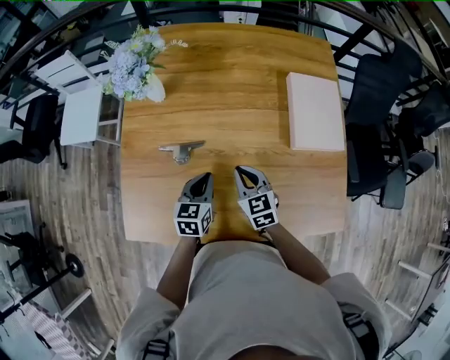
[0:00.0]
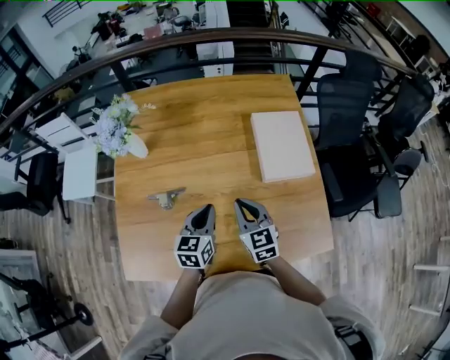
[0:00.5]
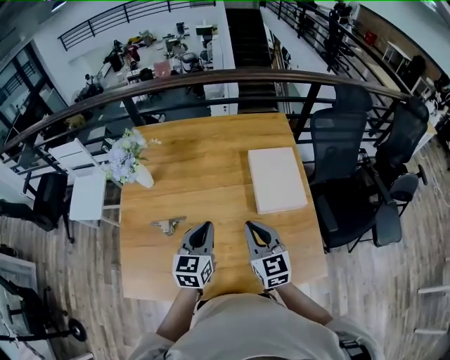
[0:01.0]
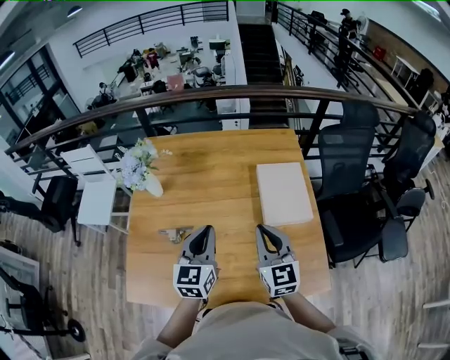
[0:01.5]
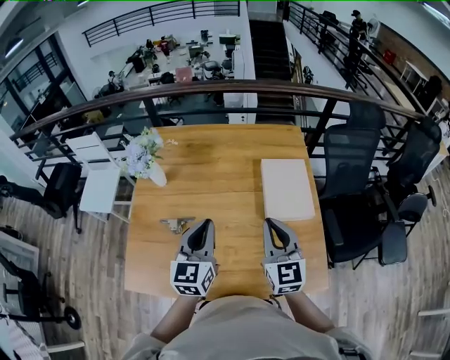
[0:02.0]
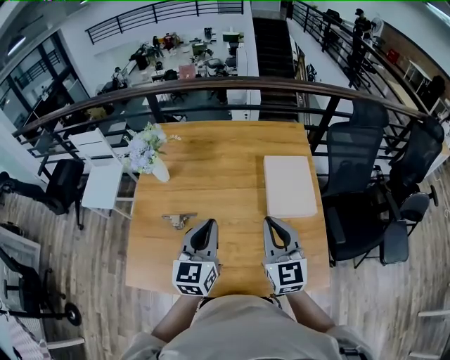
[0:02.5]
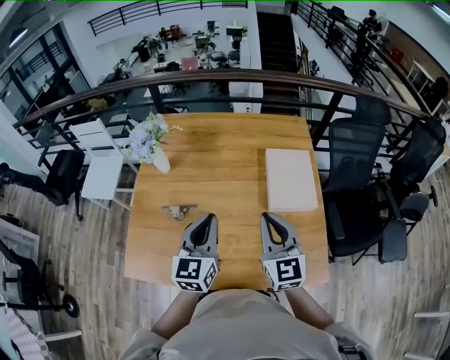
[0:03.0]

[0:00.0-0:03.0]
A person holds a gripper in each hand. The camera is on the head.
0:00.0 to 0:01.5: Both grippers travel together upward and to the right, approximately 25 cm. The left gripper changes its angle by about 30 degrees, while the right gripper swivels approximately 30 degrees.
0:01.5 to 0:03.0: There are only small adjustments of the grippers.

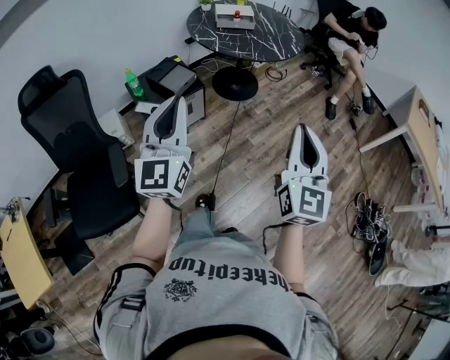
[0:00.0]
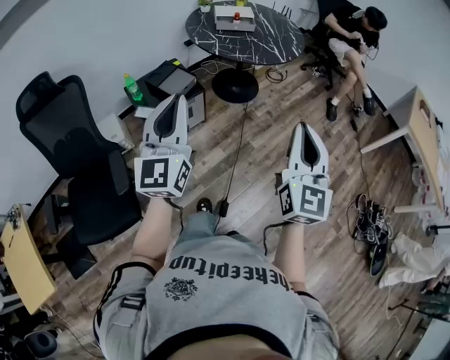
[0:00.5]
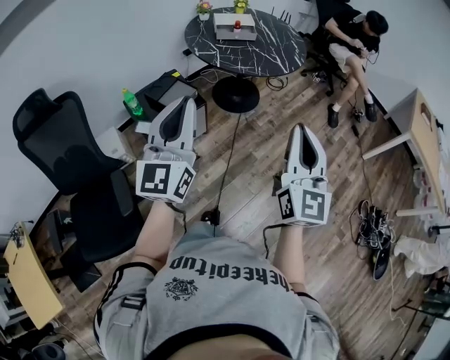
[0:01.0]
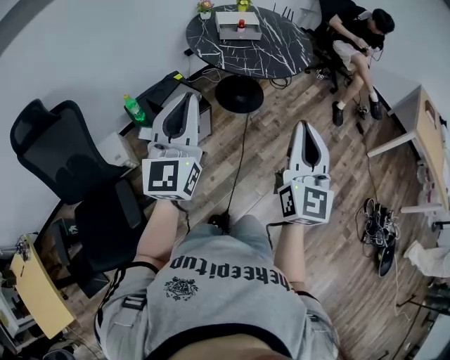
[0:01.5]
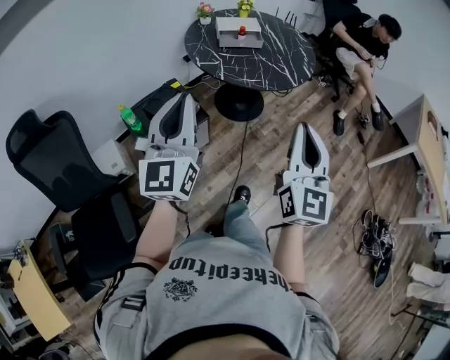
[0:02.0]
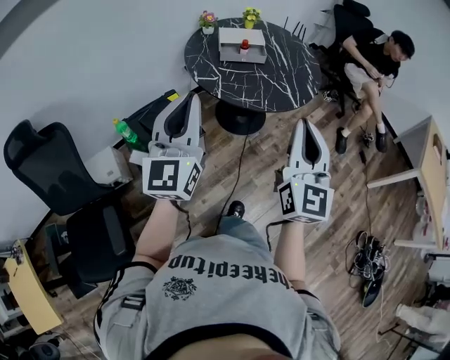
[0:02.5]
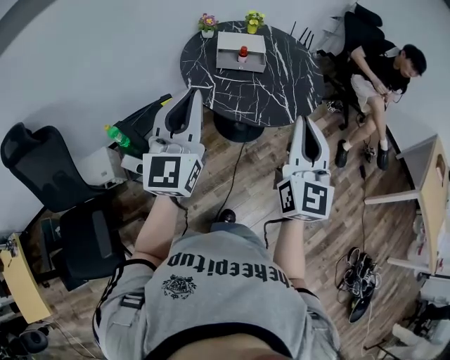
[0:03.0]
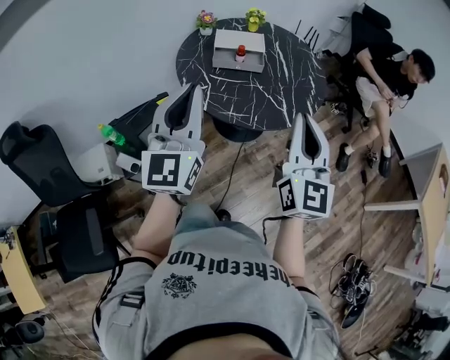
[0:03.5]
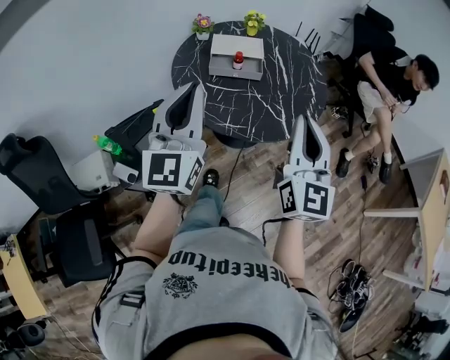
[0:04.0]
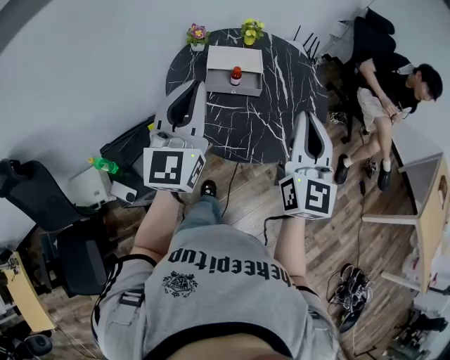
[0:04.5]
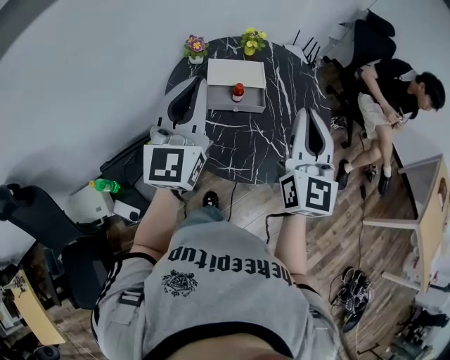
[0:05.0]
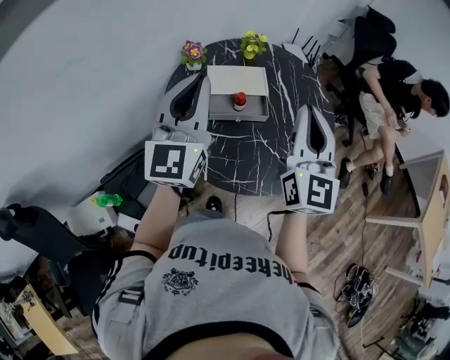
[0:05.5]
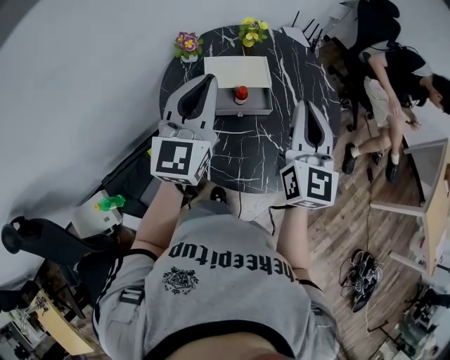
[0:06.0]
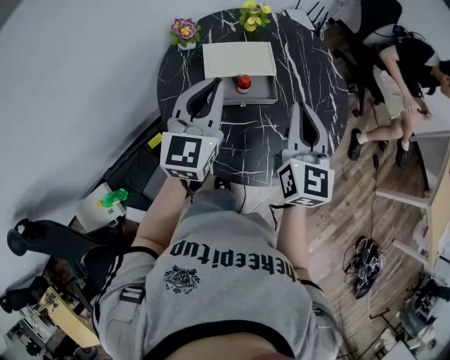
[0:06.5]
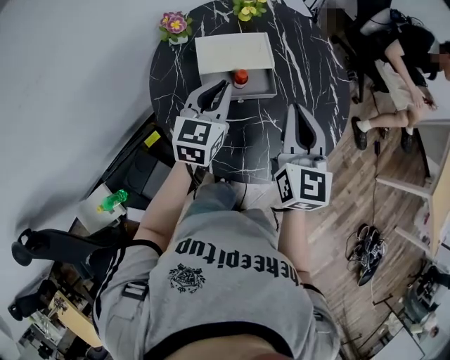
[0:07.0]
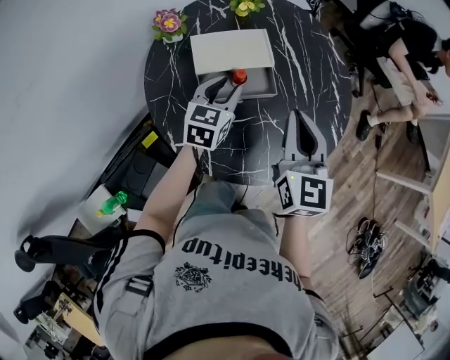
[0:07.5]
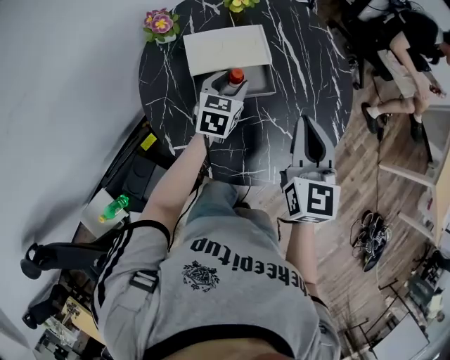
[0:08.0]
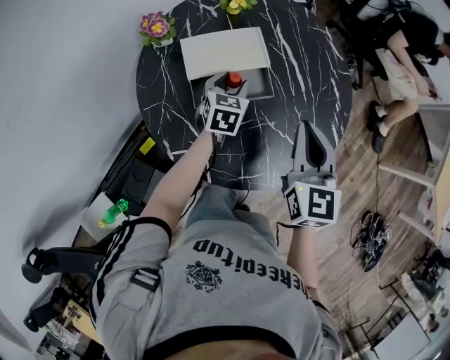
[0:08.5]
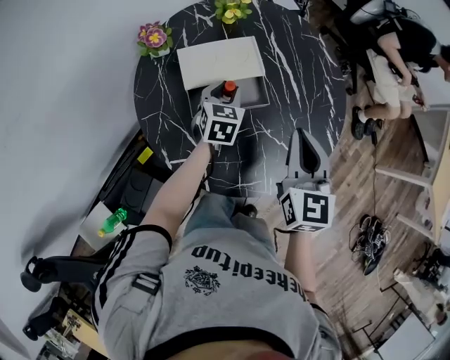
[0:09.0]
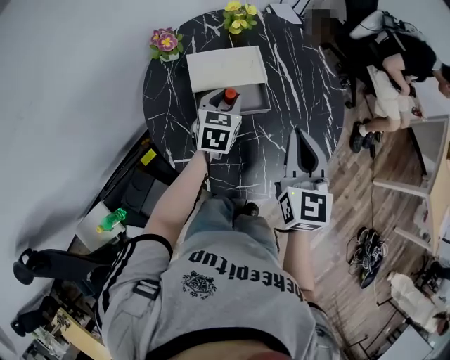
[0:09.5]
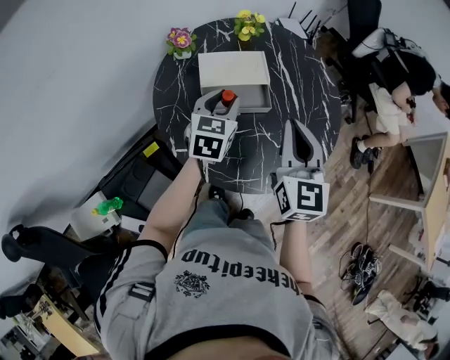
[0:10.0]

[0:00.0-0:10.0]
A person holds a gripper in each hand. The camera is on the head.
0:00.0 to 0:02.0: Both grippers move forward, approximately 25 cm.
0:02.0 to 0:04.0: The right gripper goes some 35 cm forward, while the left gripper is displaced forward and to the right by roughly 35 cm.
0:04.0 to 0:06.0: Both grippers move forward, some 30 cm.
0:06.0 to 0:08.0: The right gripper goes some 10 cm downward, and turns by some 20 degrees, while the left gripper goes about 30 cm downward and forward, tips its fingers downward by some 40 degrees, and opens up.
0:08.0 to 0:10.0: The right gripper travels upward by about 5 cm. The left gripper travels upward and backward by about 15 cm.

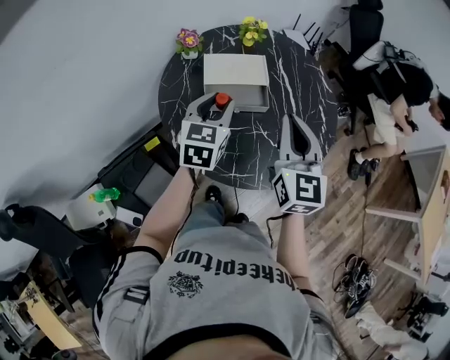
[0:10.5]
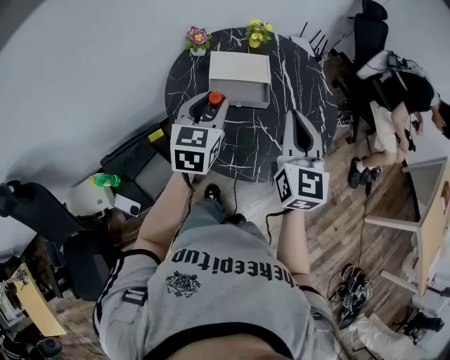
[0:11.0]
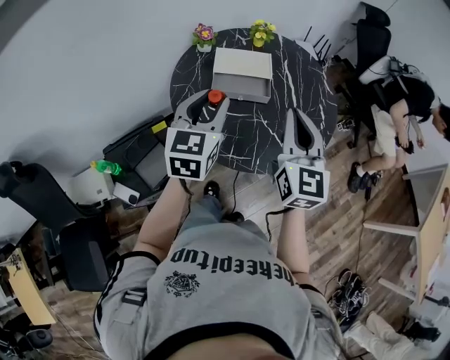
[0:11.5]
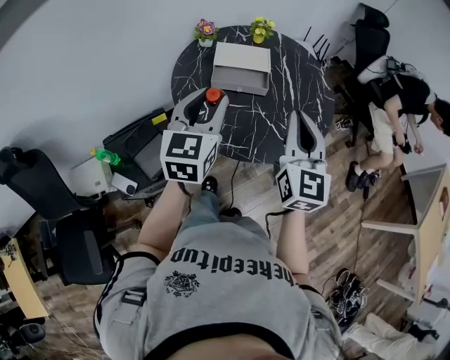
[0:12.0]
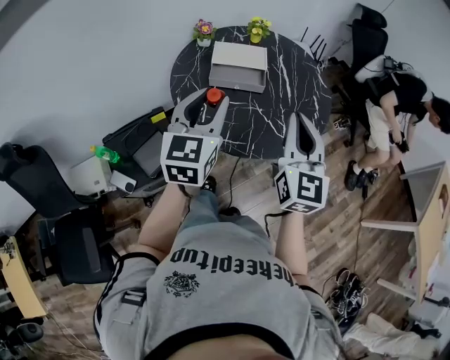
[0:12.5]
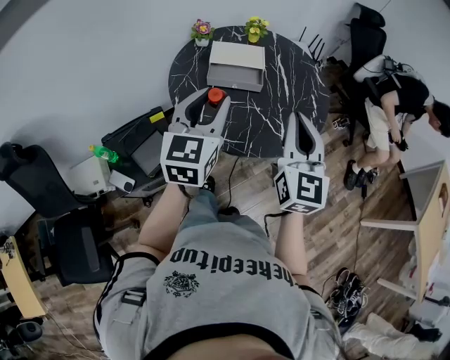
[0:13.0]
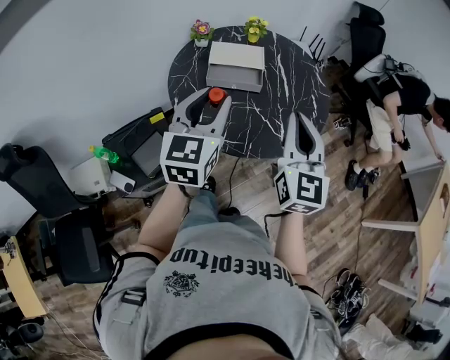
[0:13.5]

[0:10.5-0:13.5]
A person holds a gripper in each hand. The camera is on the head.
0:10.5 to 0:12.0: The left gripper is displaced backward and upward by roughly 20 cm. Meanwhile the right gripper shifts about 15 cm backward.
0:12.0 to 0:13.5: The left gripper moves some 5 cm.

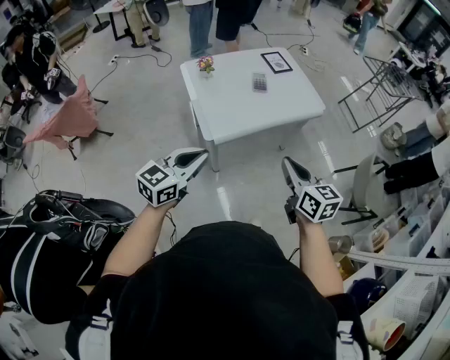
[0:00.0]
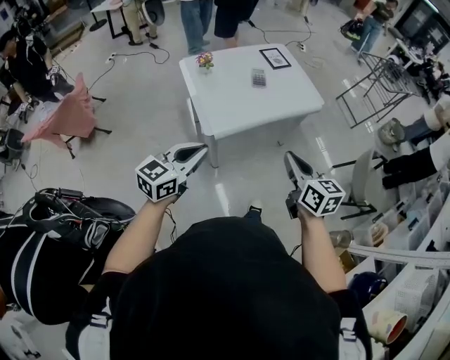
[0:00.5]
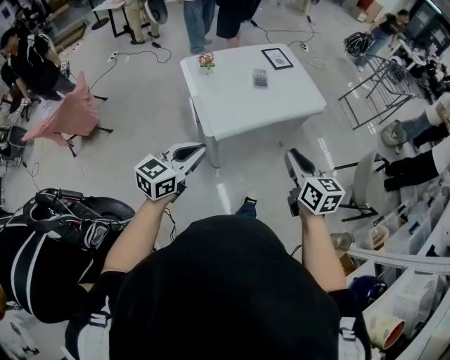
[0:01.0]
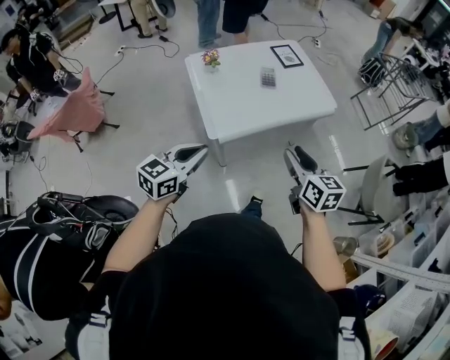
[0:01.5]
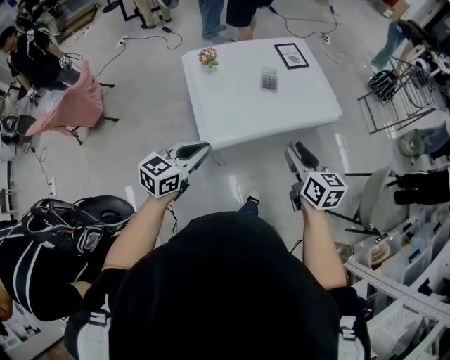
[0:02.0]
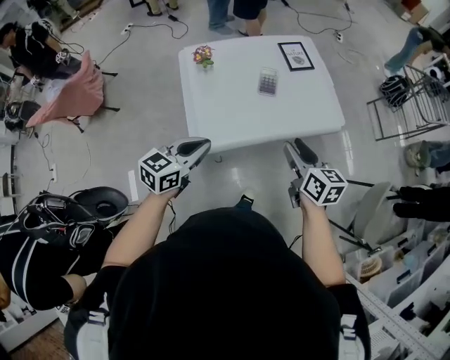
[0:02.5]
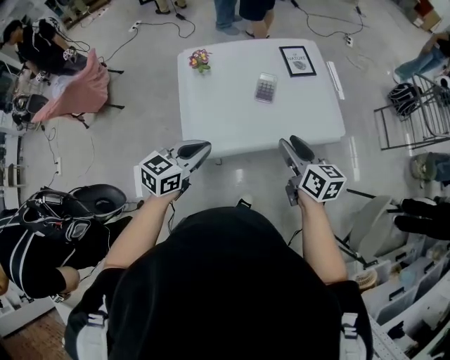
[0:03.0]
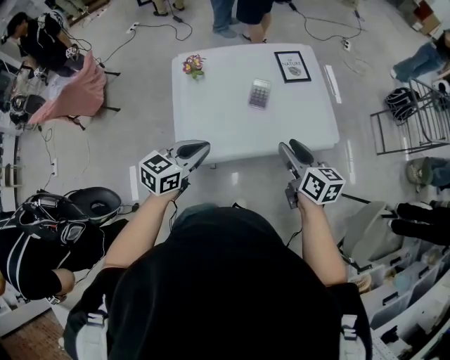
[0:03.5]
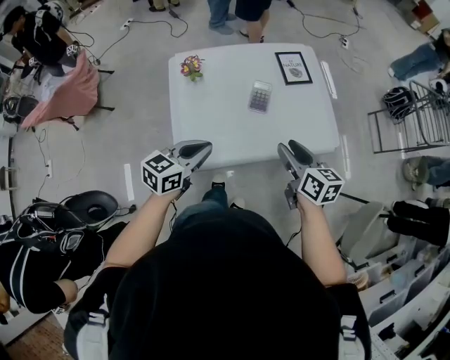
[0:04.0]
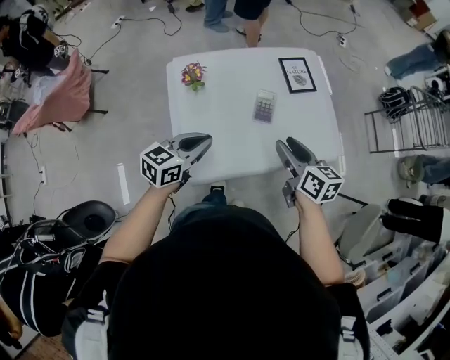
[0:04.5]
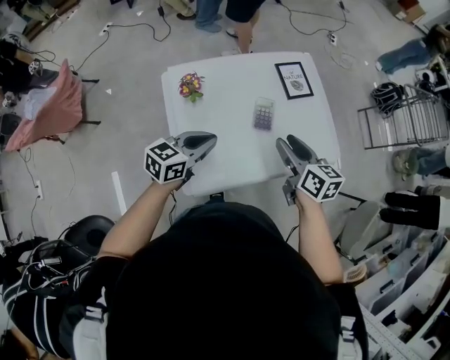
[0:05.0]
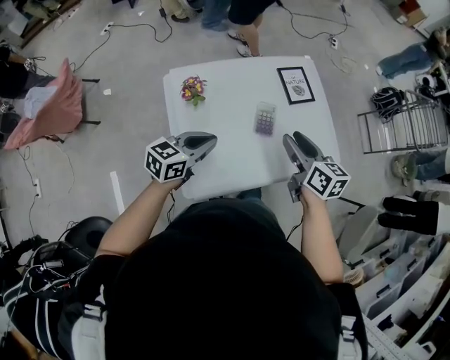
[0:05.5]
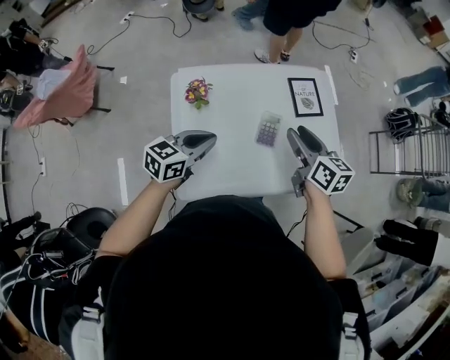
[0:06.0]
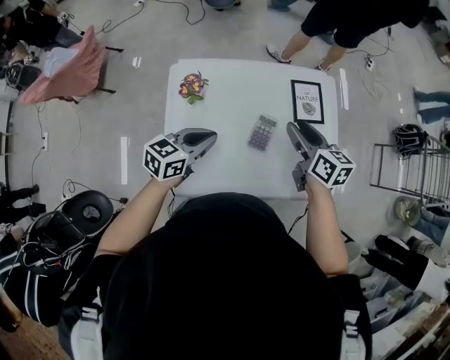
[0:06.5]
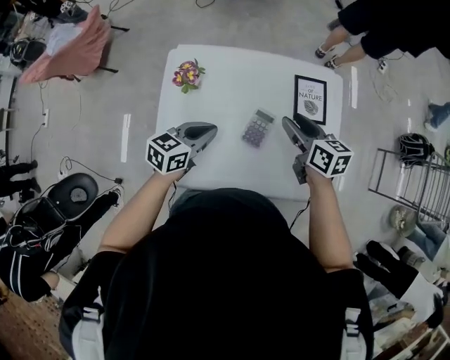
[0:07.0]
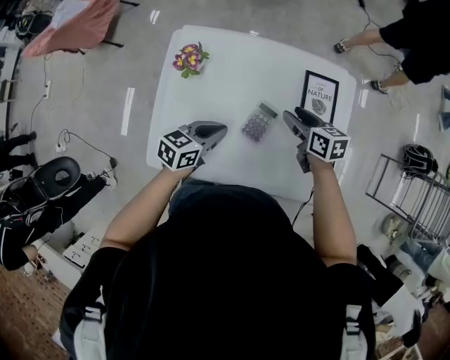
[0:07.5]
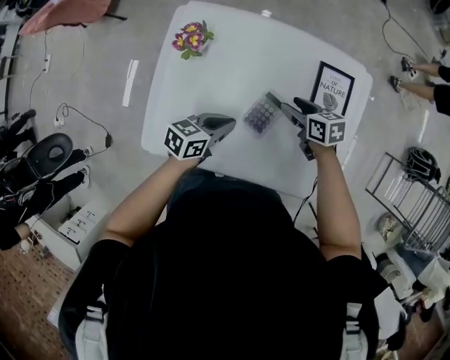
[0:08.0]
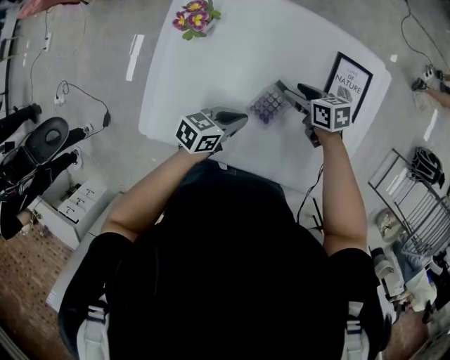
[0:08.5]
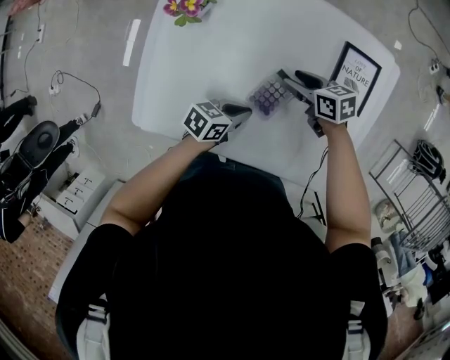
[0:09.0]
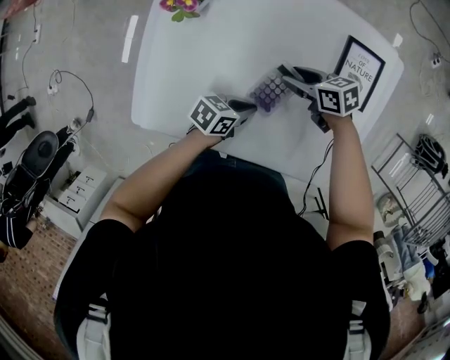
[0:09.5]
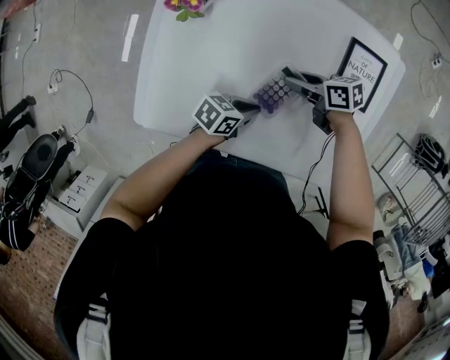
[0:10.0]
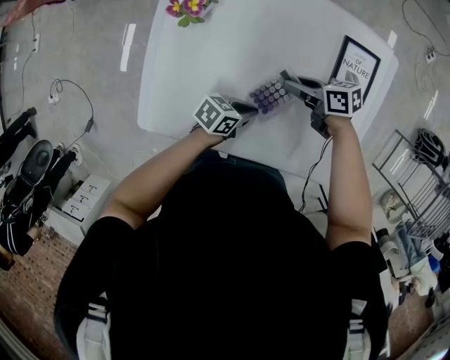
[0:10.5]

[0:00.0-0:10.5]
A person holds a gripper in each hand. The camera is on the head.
0:00.0 to 0:02.0: Both grippers travel together forward, roughly 15 cm. The right gripper opens up.
0:02.0 to 0:04.0: The left gripper is displaced forward and to the right by approximately 20 cm. The right gripper shifts roughly 20 cm forward.
0:04.0 to 0:06.5: Both grippers move forward, some 25 cm.
0:06.5 to 0:08.5: Both grippers travel together downward, some 25 cm. The left gripper changes its angle by some 20 degrees. Meanwhile the right gripper rotates some 50 degrees.
0:08.5 to 0:10.5: The right gripper closes its fingers; the left gripper moves downward, about 5 cm.
